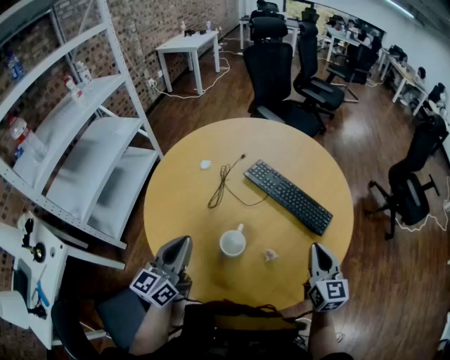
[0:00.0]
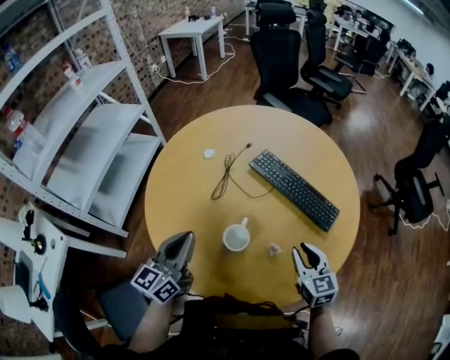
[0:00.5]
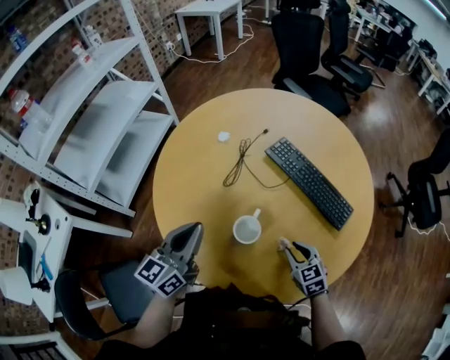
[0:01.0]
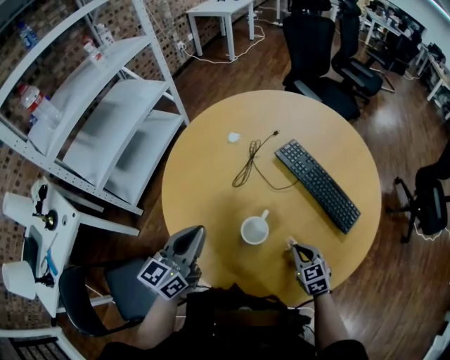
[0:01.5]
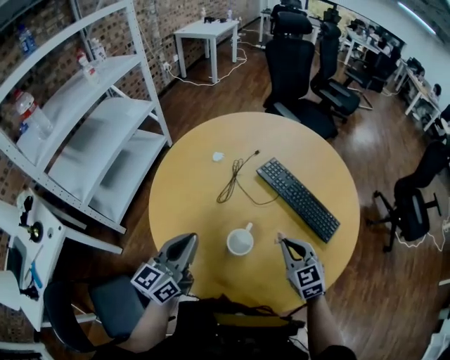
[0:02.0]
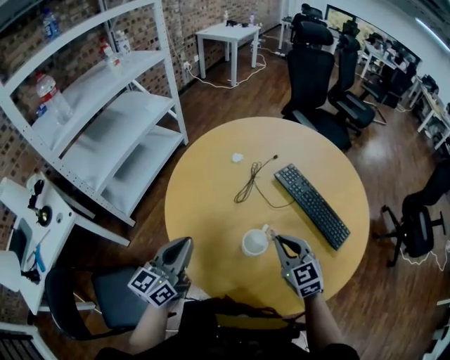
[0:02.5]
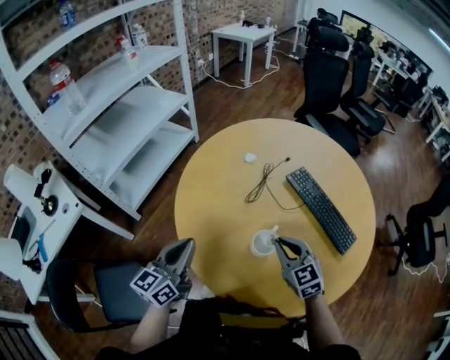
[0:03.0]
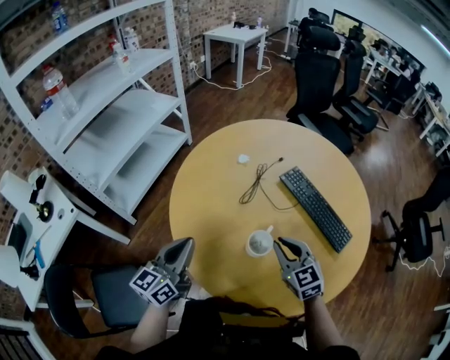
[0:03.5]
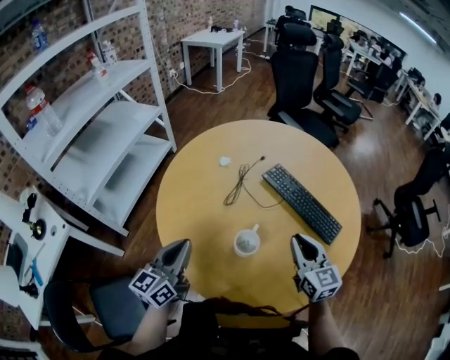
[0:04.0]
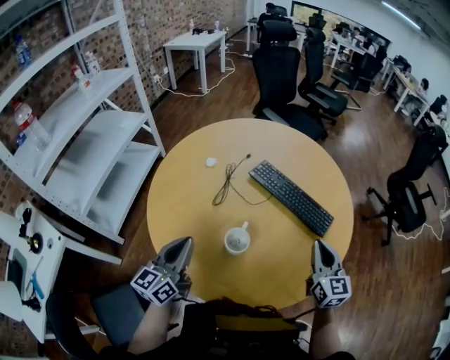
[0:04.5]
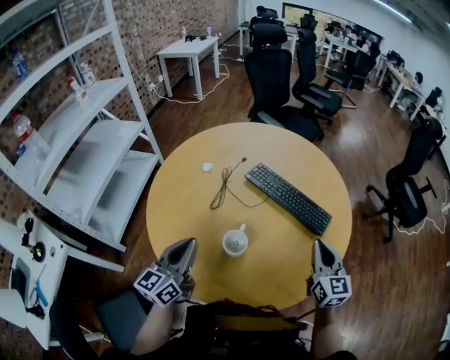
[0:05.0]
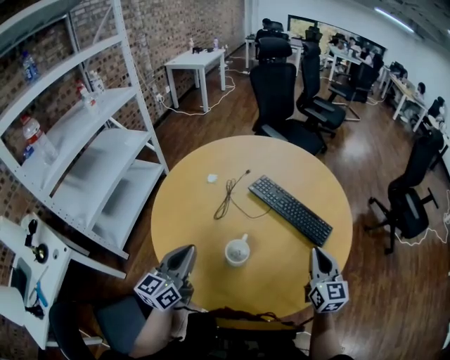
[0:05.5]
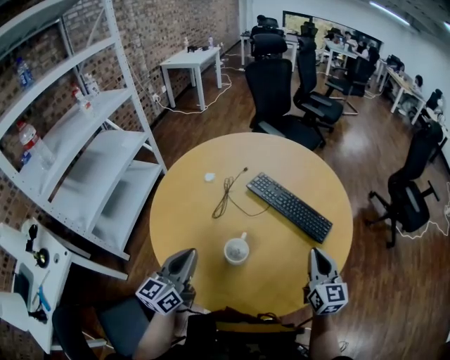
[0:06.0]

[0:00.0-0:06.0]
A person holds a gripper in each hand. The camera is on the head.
0.0 to 2.0 s: The right gripper moves to the left, about 10 cm, travels downward and back again, approximately 15 cm each way, rotates some 40 degrees, and opens and closes again.
2.0 to 4.0 s: The right gripper goes some 5 cm upward, moves some 10 cm to the left and comes back, and rotates approximately 20 degrees.
4.0 to 6.0 s: The left gripper is displaced to the right by some 5 cm. Meanwhile the right gripper is displaced to the right by some 10 cm, and swivels some 20 degrees.

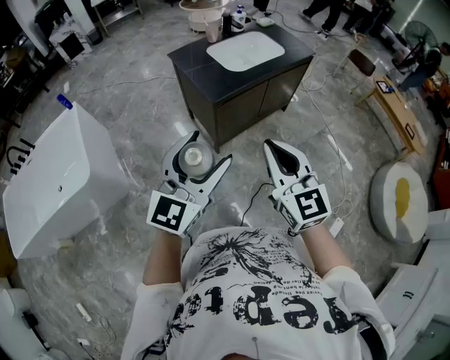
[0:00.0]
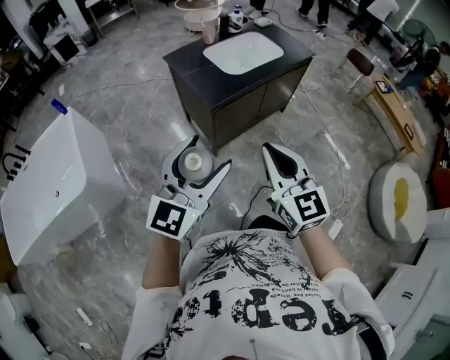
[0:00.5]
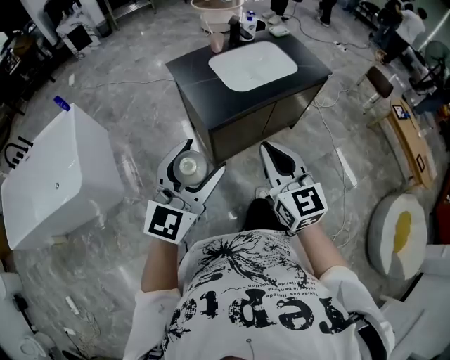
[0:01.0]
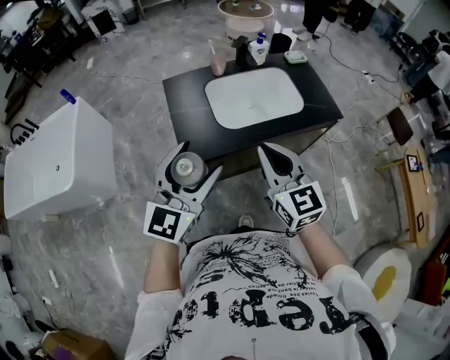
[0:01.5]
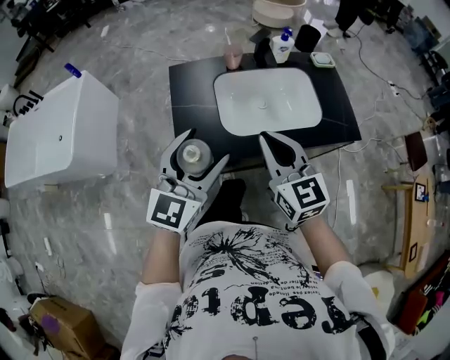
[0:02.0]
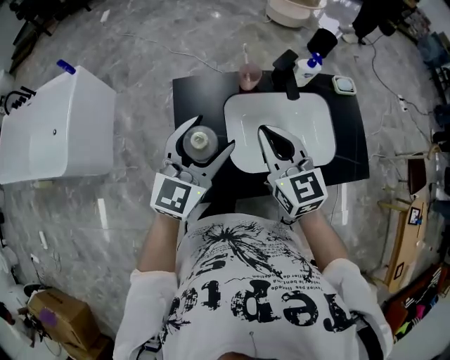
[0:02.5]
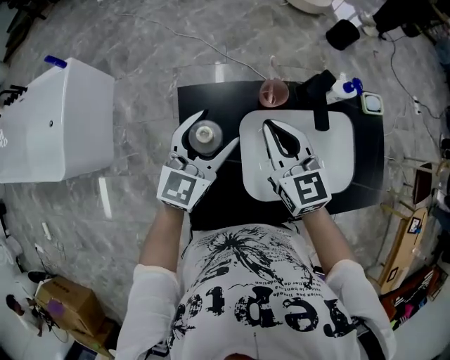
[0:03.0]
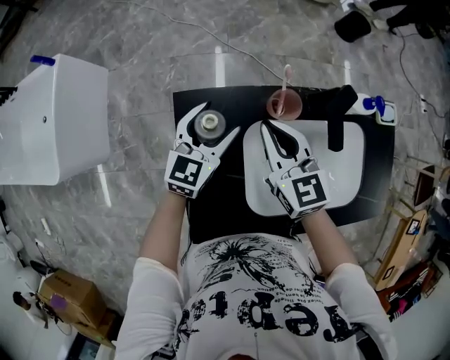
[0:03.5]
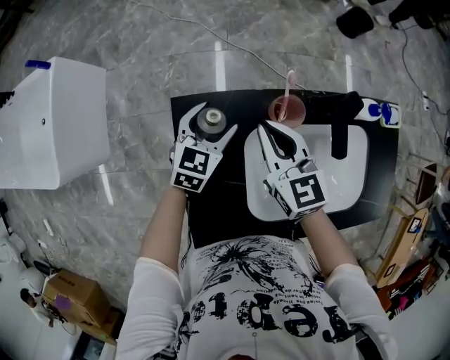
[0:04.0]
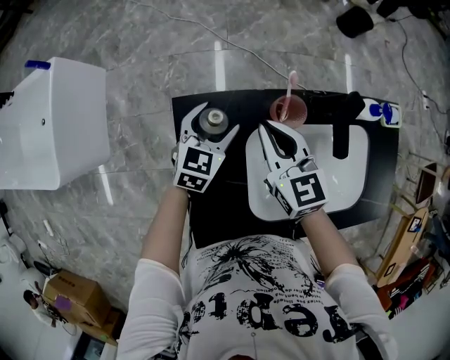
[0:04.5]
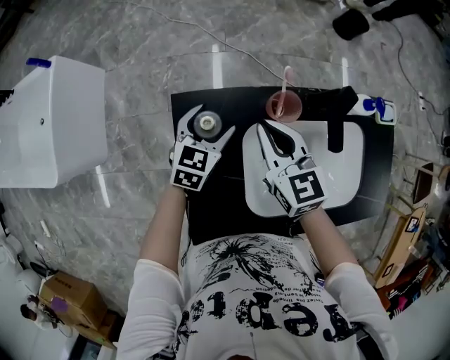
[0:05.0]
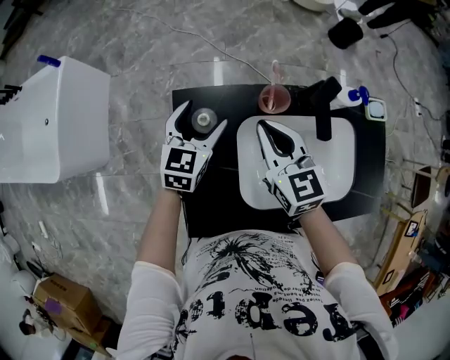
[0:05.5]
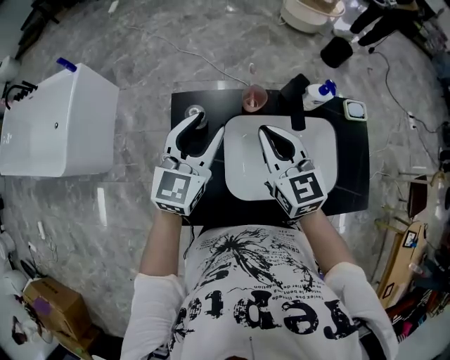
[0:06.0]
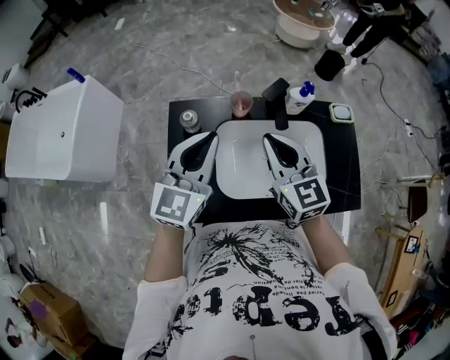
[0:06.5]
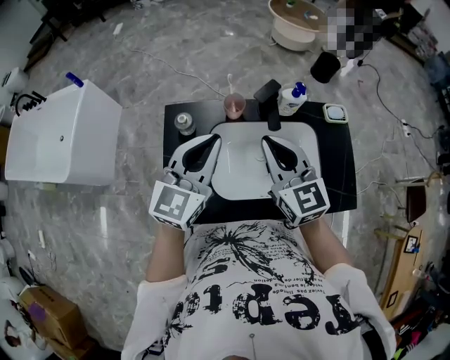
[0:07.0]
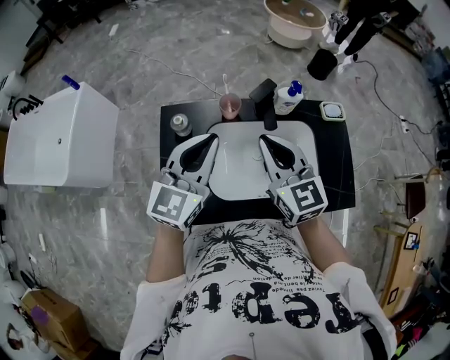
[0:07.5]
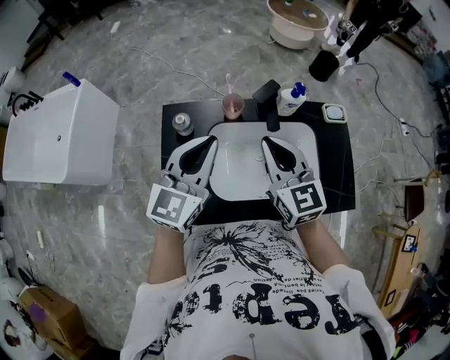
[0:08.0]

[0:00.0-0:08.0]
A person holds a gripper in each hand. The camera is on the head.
0.0 to 2.0 s: The pair of grippers is taken roughly 60 cm. The left gripper swivels some 30 degrees. Meanwhile the right gripper changes its angle by roughly 30 degrees.
2.0 to 4.0 s: The two grippers travel together, forward, approximately 50 cm. The left gripper travels downward by about 30 cm, and rotates about 30 degrees; the right gripper shifts about 20 cm downward.
4.0 to 6.0 s: The left gripper goes roughly 30 cm upward and backward, changes its angle by roughly 20 degrees, and closes its fingers; the right gripper heads backward, upward and to the right, covering approximately 20 cm.
6.0 to 8.0 s: The right gripper goes about 10 cm to the right, backward and upward; the left gripper heads backward, to the right and upward, covering about 15 cm, and closes.

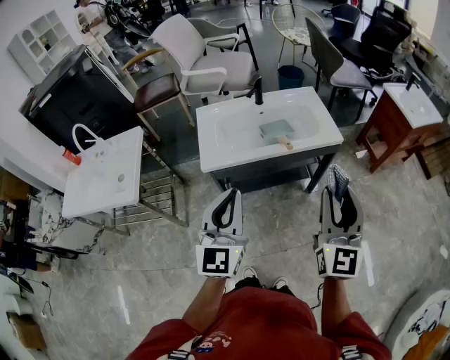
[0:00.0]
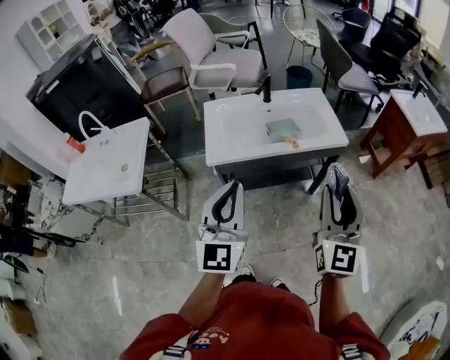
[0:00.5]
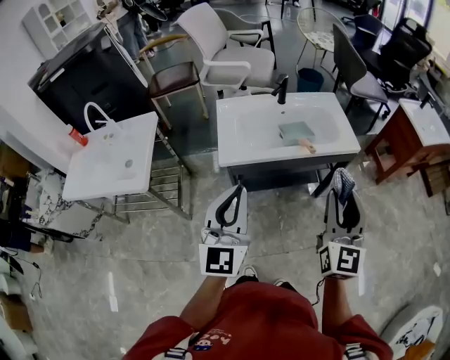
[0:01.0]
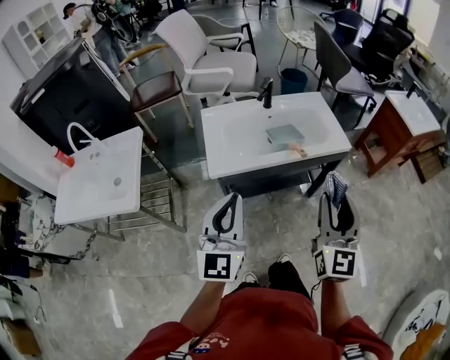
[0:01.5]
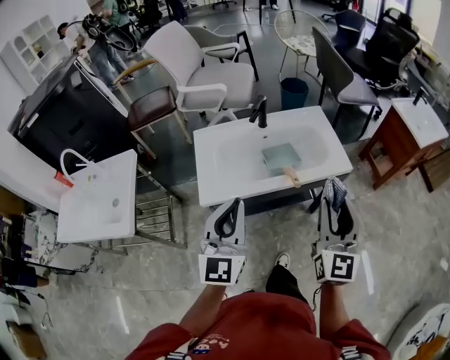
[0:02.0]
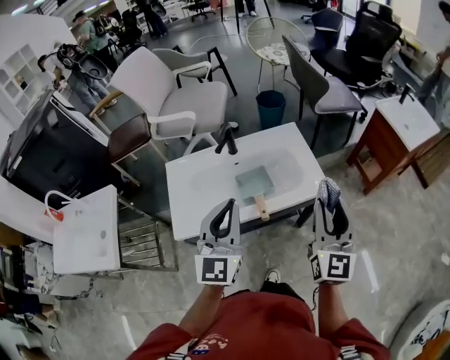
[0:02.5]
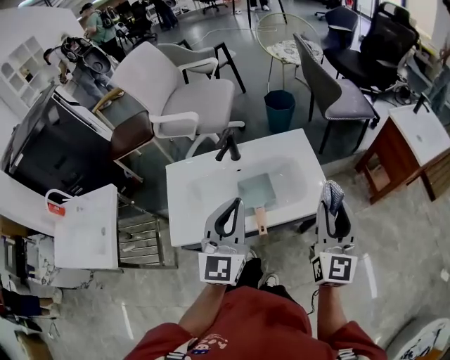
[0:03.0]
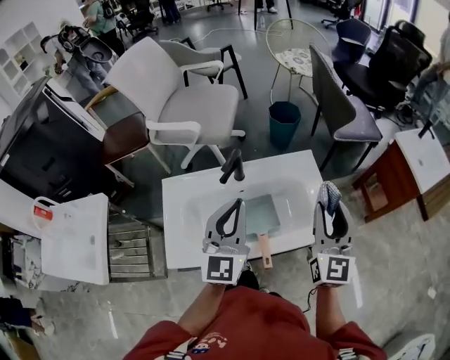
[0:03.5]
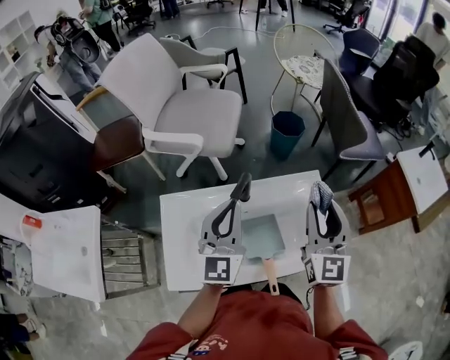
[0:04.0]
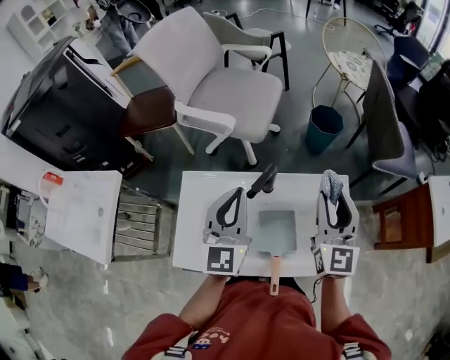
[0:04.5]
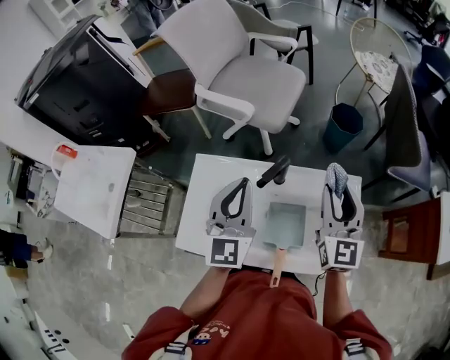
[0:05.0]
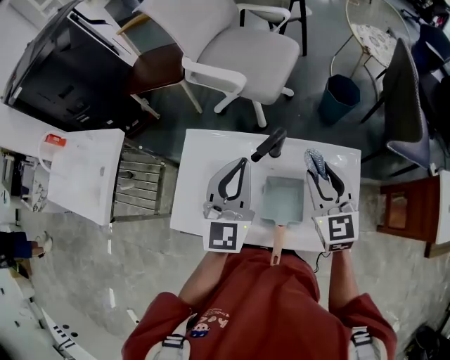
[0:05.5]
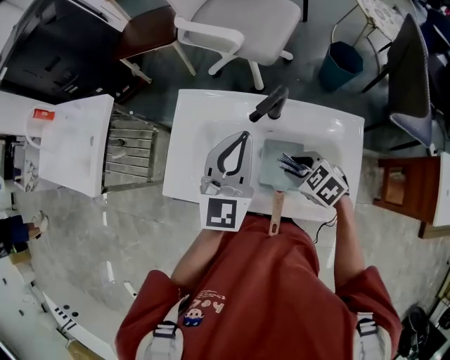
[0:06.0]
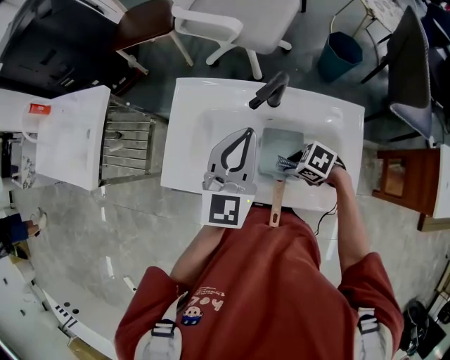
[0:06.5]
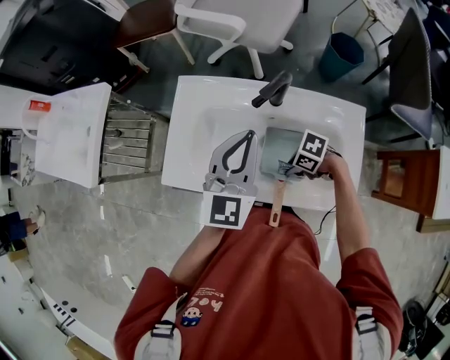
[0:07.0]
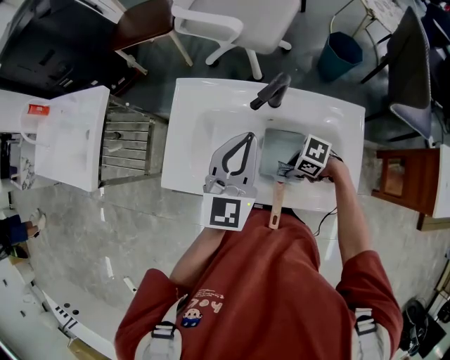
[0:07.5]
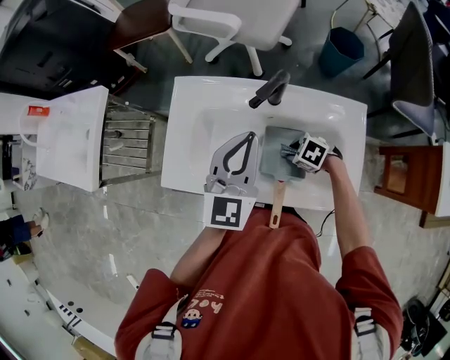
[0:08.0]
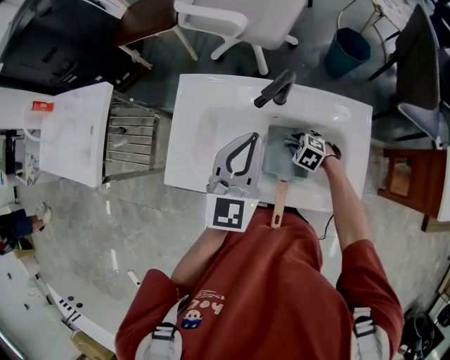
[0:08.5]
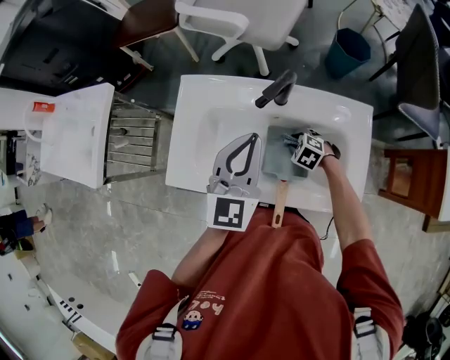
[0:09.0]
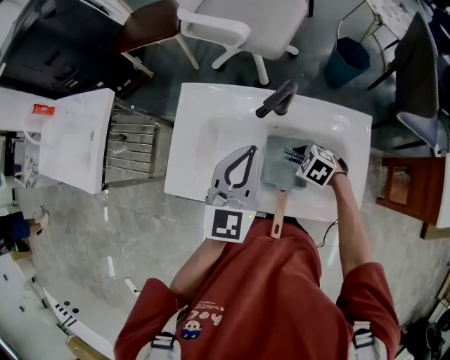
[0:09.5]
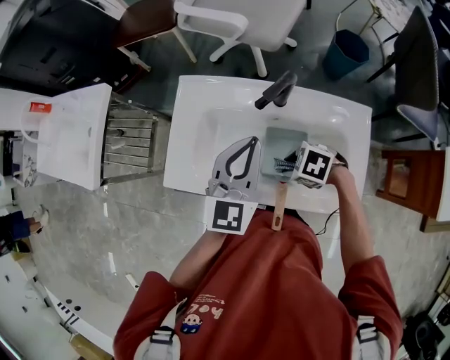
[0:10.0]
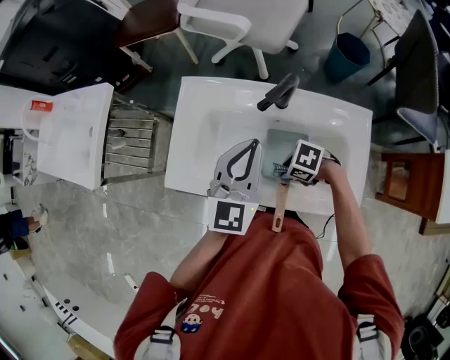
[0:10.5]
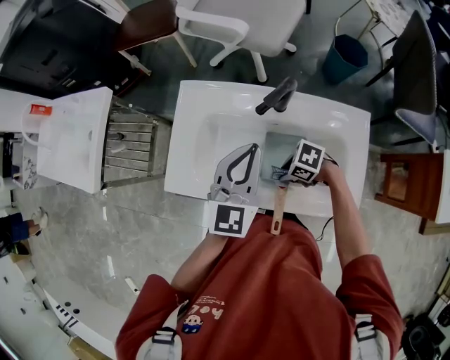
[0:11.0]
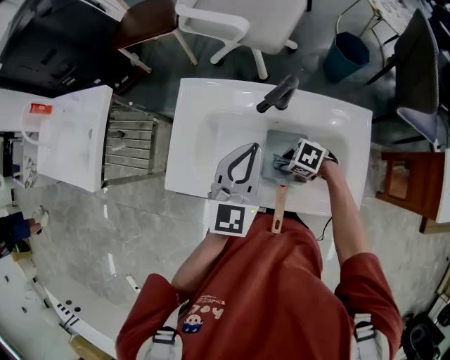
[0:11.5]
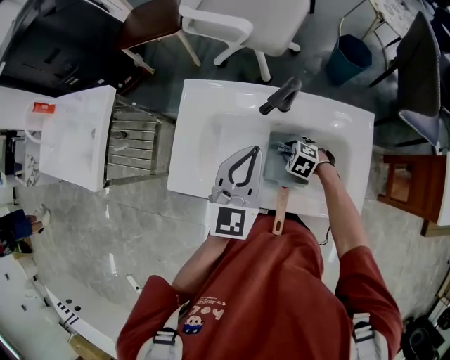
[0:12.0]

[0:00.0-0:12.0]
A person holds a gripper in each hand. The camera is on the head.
0.0 to 2.0 s: The grippers both shift forward by about 15 cm.
2.0 to 4.0 s: The grippers both shift forward by roughly 40 cm.
4.0 to 6.0 s: The right gripper shifts roughly 25 cm downward, and angles its fingers downward, by about 60 degrees; the left gripper goes about 5 cm downward.
6.0 to 8.0 s: The right gripper travels downward by roughly 15 cm, and turns by about 20 degrees.
8.0 to 10.0 s: The right gripper moves upward, roughly 10 cm.
10.0 to 12.0 s: The right gripper goes about 10 cm downward, and changes its angle by some 20 degrees.

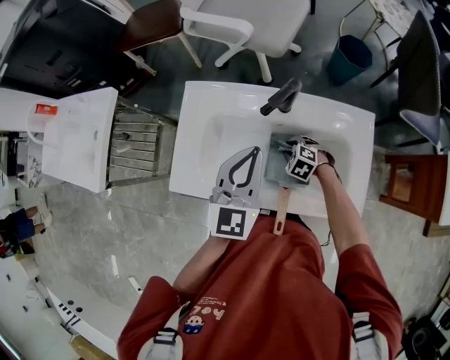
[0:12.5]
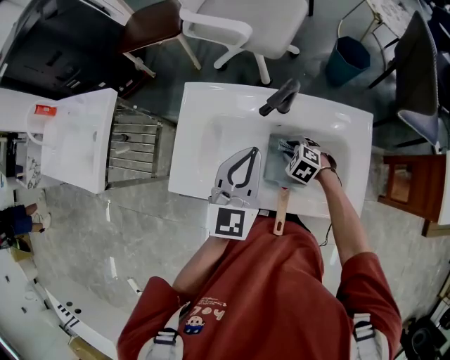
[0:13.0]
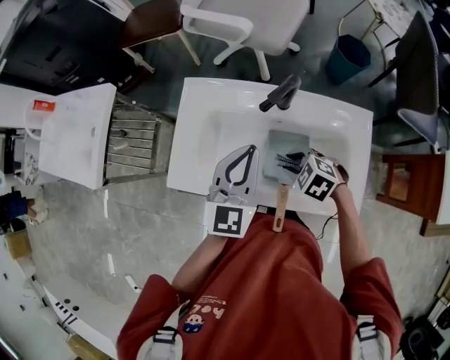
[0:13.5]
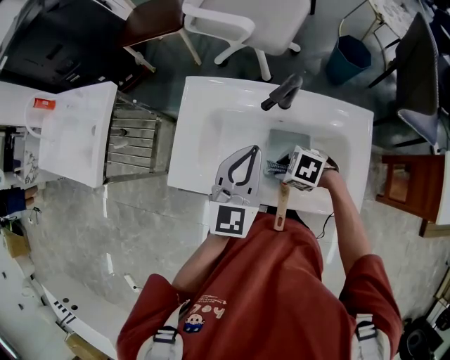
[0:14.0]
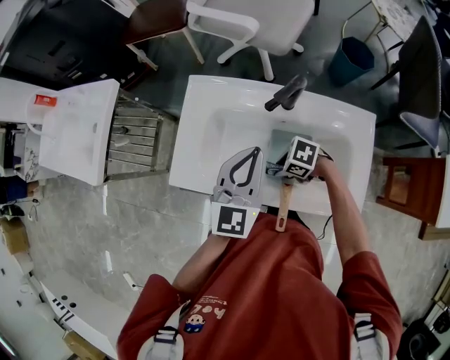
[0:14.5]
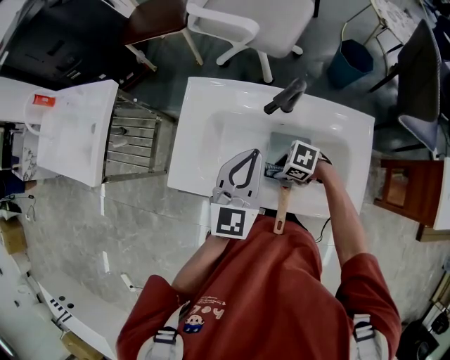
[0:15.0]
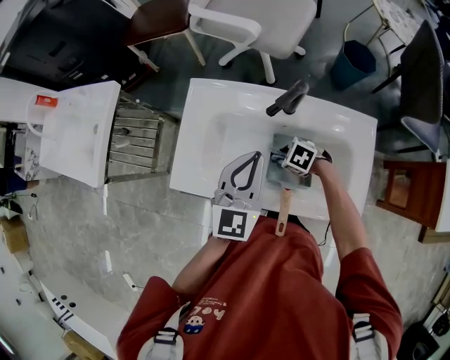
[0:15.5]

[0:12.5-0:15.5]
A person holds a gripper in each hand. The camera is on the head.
12.5 to 14.0 s: The right gripper shifts about 10 cm upward, and swivels some 30 degrees.
14.0 to 15.5 s: The right gripper goes about 10 cm downward.
